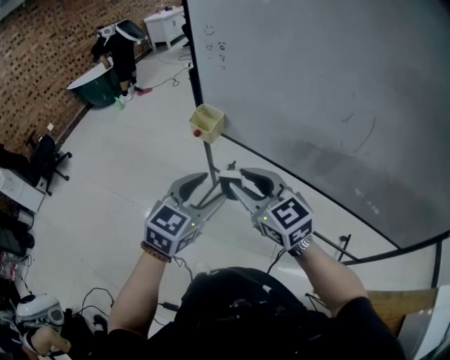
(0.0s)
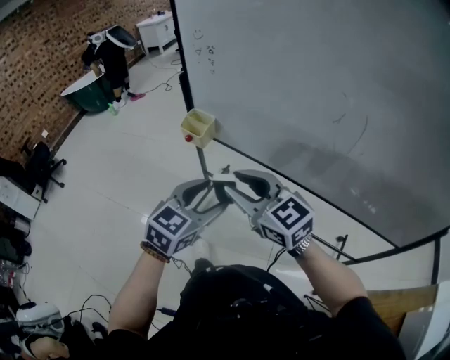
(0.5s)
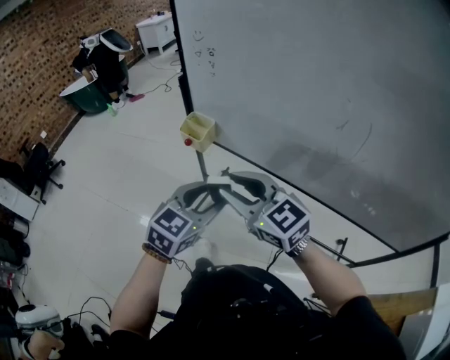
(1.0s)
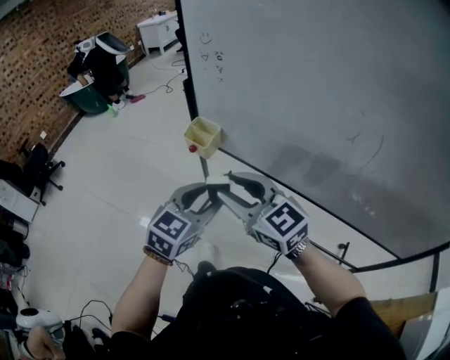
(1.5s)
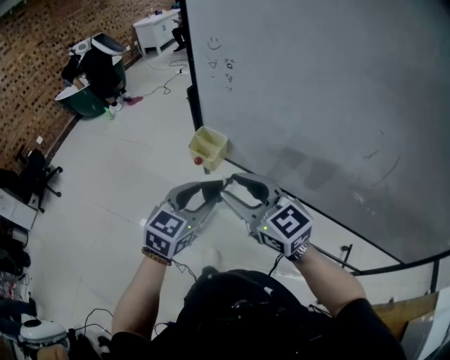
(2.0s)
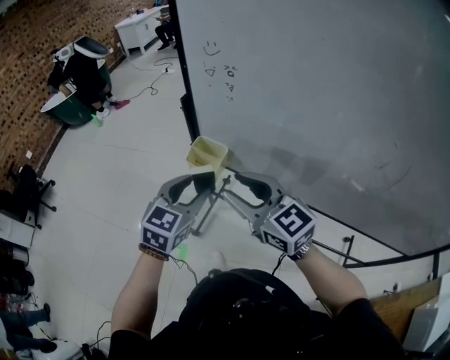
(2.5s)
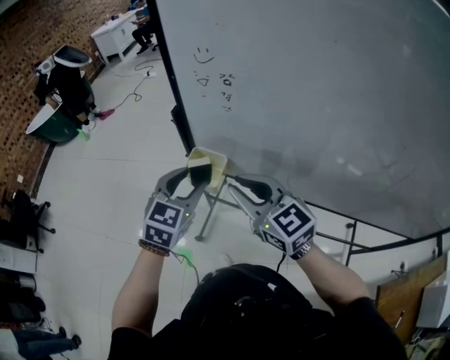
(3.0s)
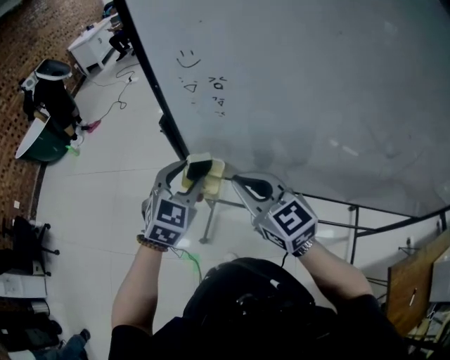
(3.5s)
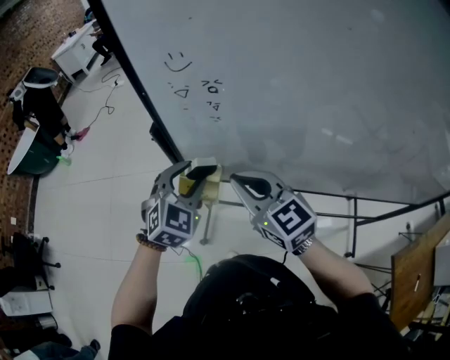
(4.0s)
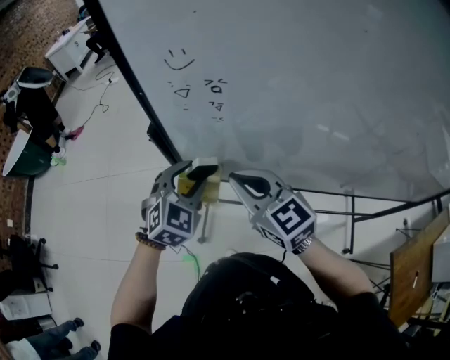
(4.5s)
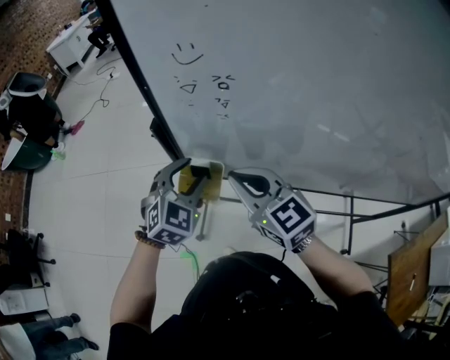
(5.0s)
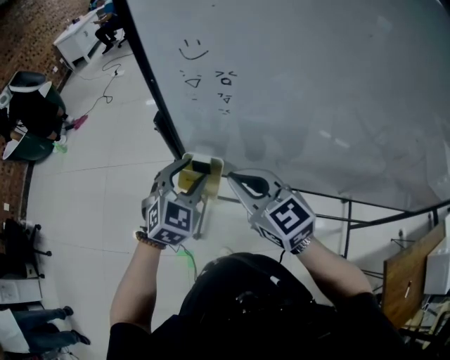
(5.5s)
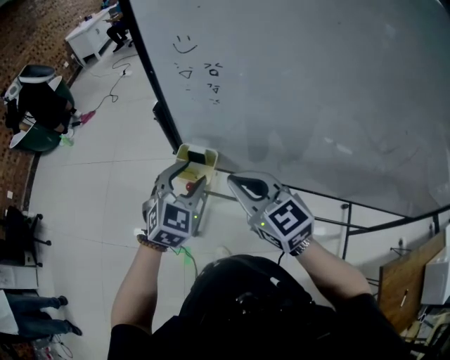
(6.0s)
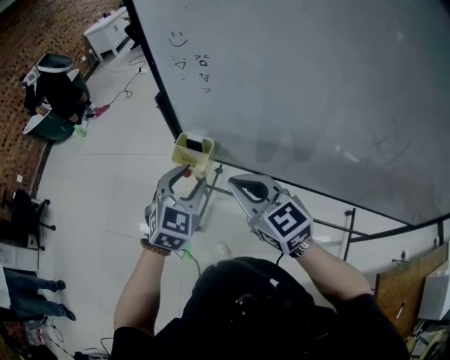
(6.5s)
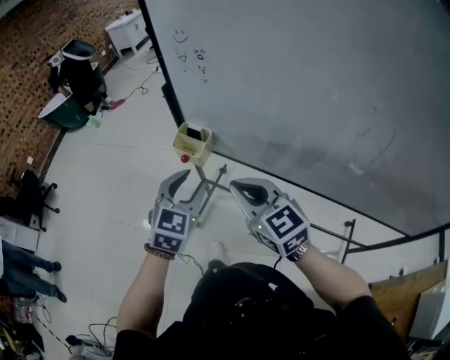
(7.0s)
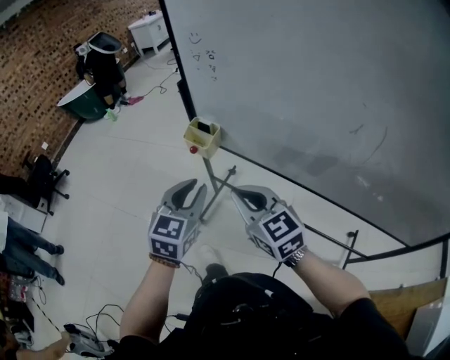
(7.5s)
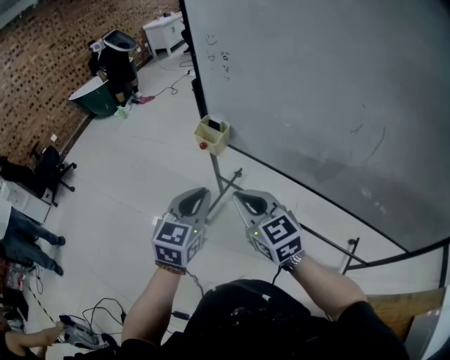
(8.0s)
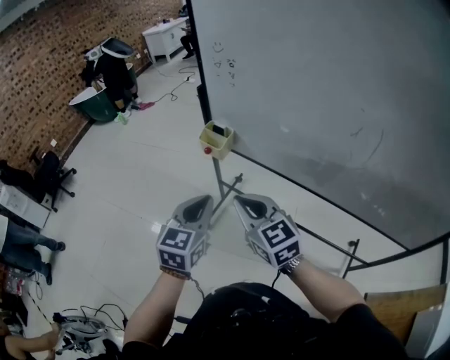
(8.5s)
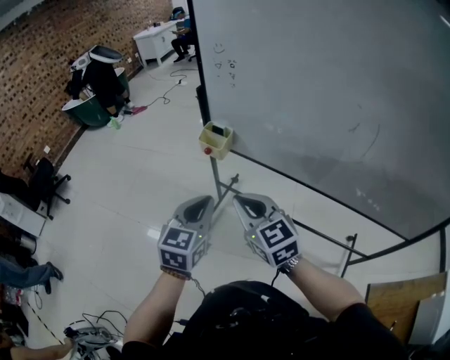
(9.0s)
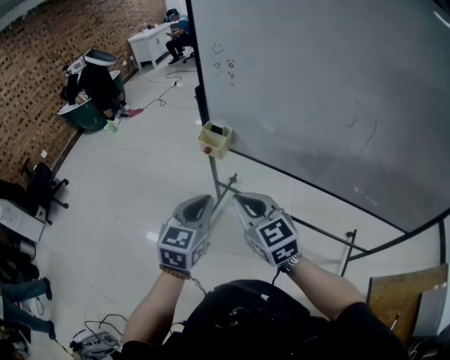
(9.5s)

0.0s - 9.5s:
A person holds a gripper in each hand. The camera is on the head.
0.0s - 2.0s: Both grippers move forward, roughly 10 cm.
2.0s - 4.0s: Both grippers move forward, some 20 cm. The right gripper rotates some 30 degrees, and closes its fingers; the left gripper changes its angle by some 40 degrees.
4.0s - 5.5s: The grippers move only a little.
5.5s - 7.5s: Both grippers move backward, some 25 cm. The left gripper changes its angle by some 40 degrees, and closes up.
7.5s - 9.5s: The left gripper moves backward and to the left, some 10 cm; the right gripper heads to the left and backward, covering roughly 10 cm.

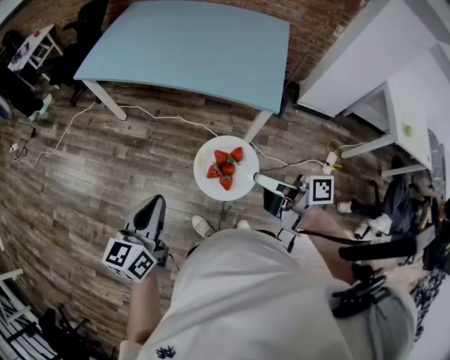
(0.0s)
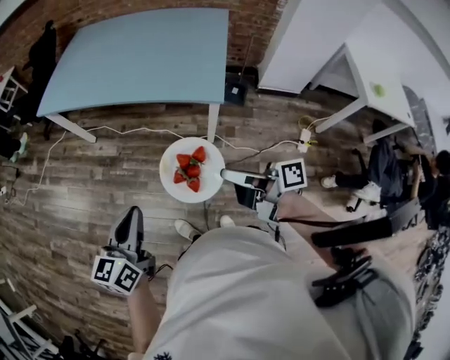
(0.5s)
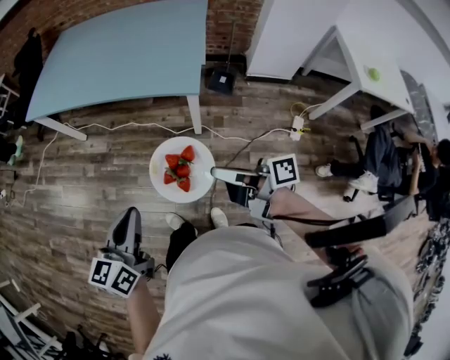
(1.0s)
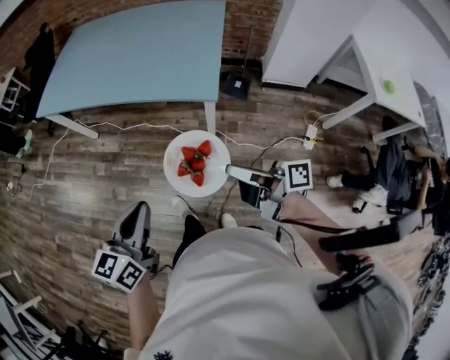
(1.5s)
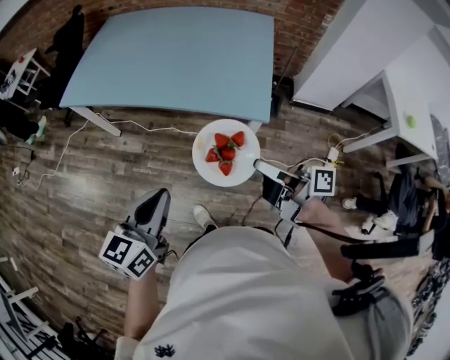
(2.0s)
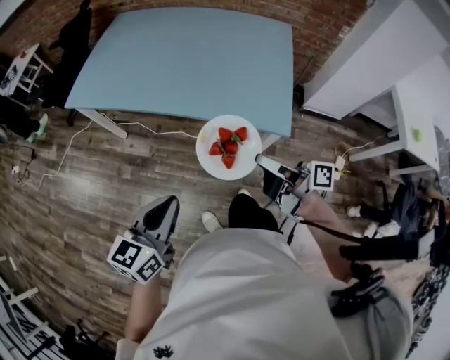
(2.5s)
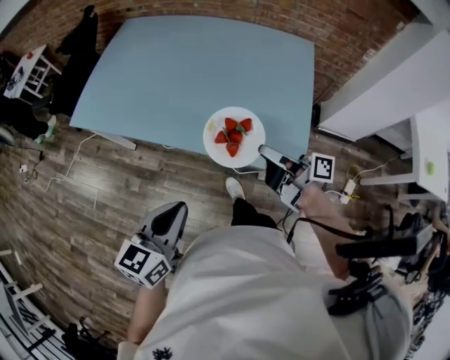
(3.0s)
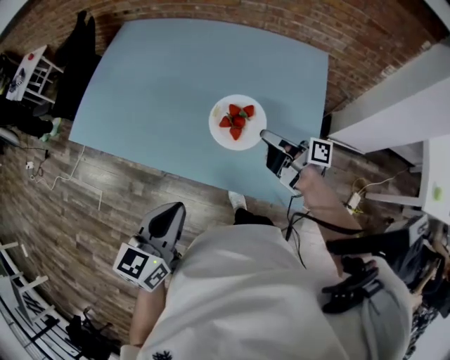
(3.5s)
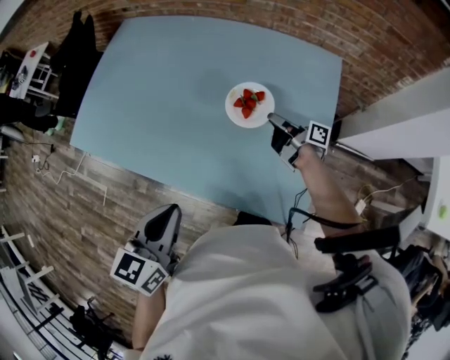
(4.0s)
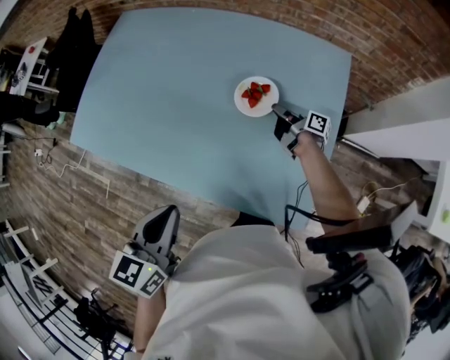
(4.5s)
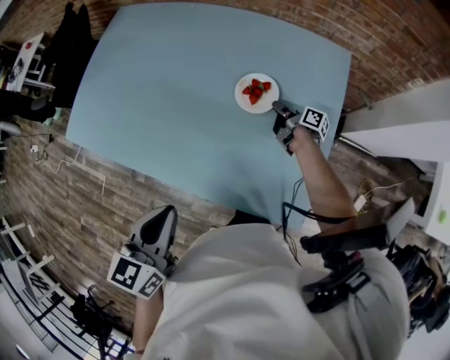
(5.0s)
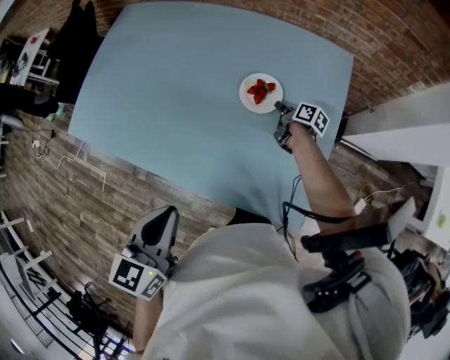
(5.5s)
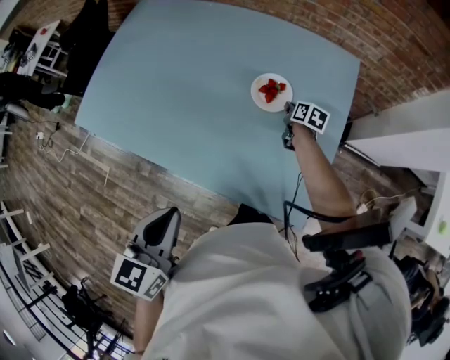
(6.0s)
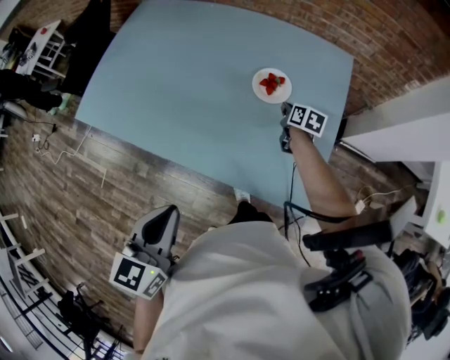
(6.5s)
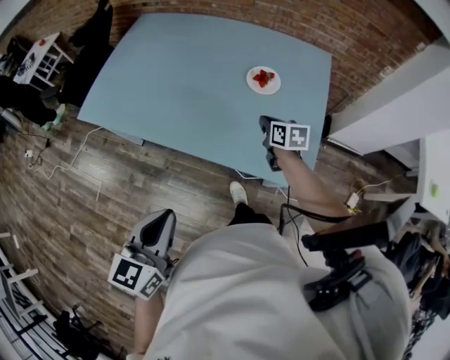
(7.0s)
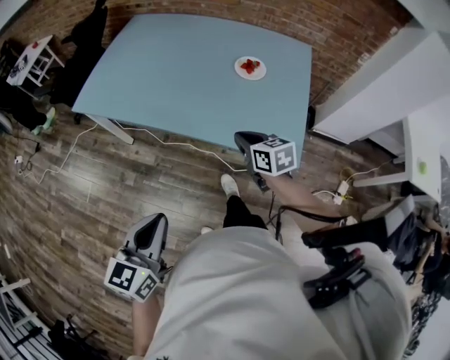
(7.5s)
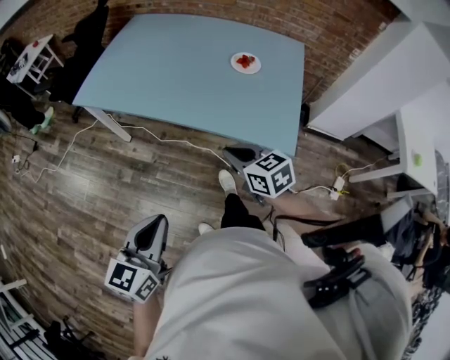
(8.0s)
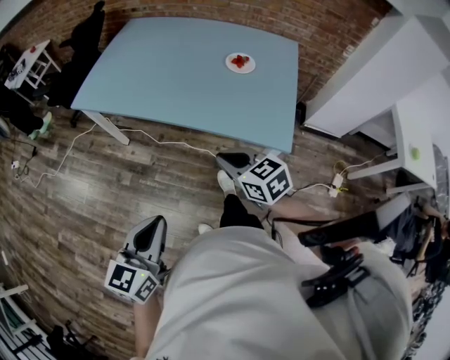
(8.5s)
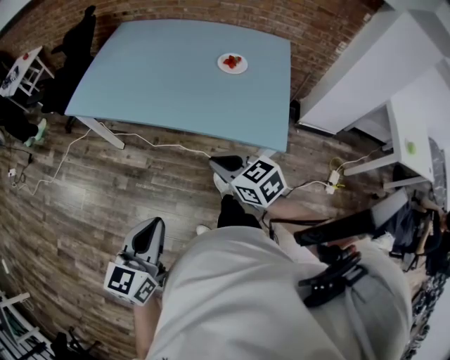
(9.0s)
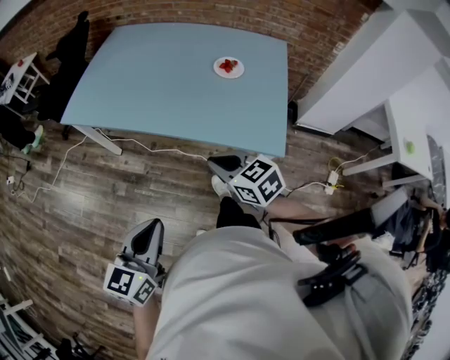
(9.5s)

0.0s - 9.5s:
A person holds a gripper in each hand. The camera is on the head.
0.0s - 2.0s: The left gripper shifts approximately 15 cm to the right and forward, while the right gripper heads forward and to the right, covering roughly 15 cm.
2.0s - 4.0s: The left gripper is displaced forward by some 40 cm. The right gripper shifts some 60 cm forward.
4.0s - 5.5s: The right gripper heads downward and forward, covering approximately 10 cm, and turns by some 30 degrees.
5.5s - 7.5s: The left gripper shifts about 30 cm backward and to the left. Meanwhile the right gripper shifts roughly 50 cm backward, to the left and upward, and twists roughly 50 degrees counterclockwise, seen from behind.
7.5s - 9.5s: The right gripper shifts approximately 15 cm backward, to the left and upward.

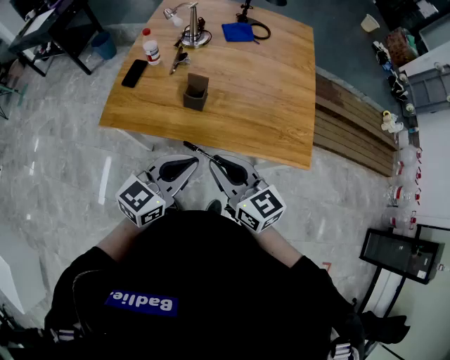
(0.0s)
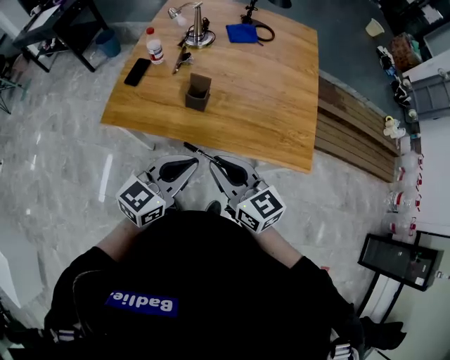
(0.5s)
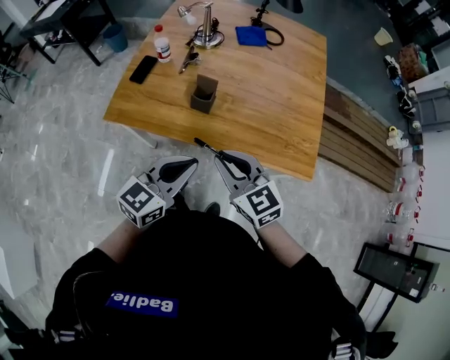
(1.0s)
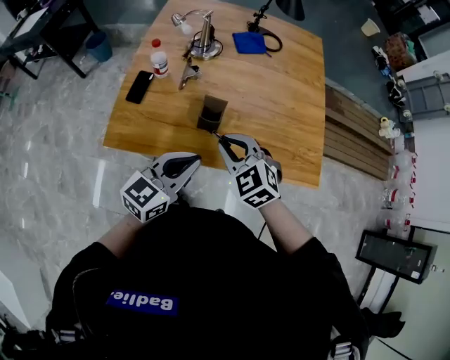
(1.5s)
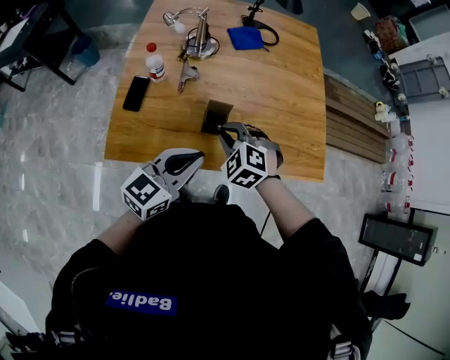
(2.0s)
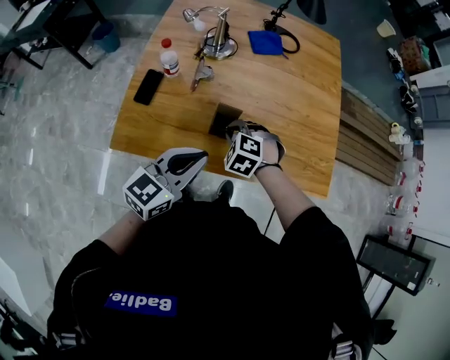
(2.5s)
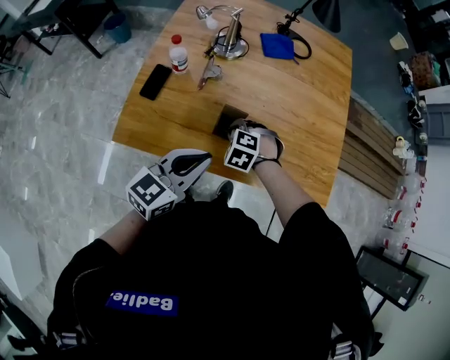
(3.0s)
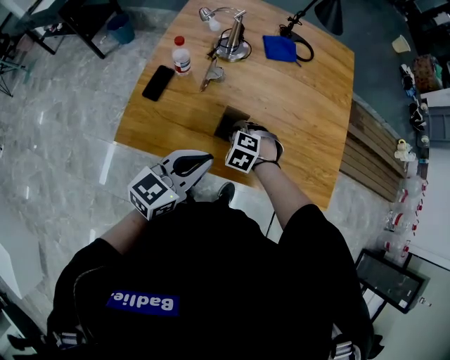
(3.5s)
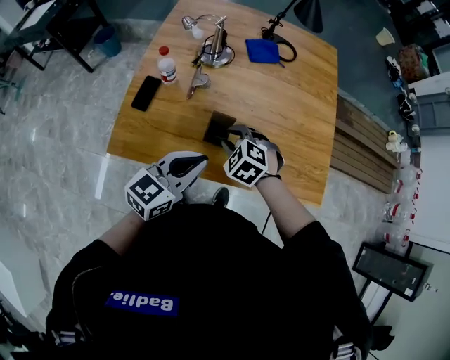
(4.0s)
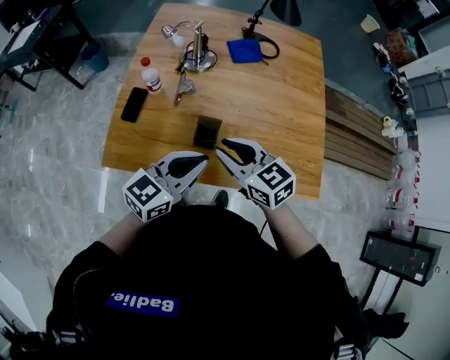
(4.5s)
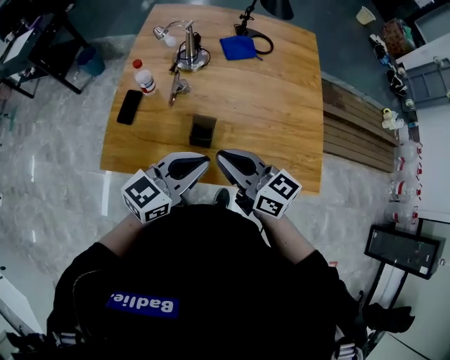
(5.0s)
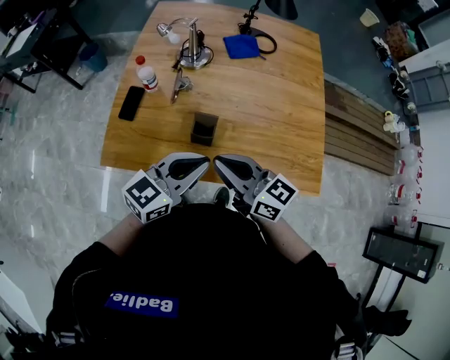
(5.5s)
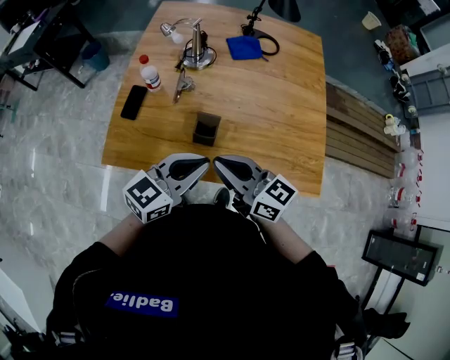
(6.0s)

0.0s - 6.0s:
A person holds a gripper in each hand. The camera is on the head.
0.0s - 2.0s: The left gripper shifts approximately 20 cm forward and to the left. Meanwhile the right gripper travels forward, to the left and downward by about 25 cm, and points its fingers roughly 40 degrees further downward.
2.0s - 4.0s: The right gripper reaches some 10 cm downward, then returns.
4.0s - 6.0s: The right gripper moves upward and backward, roughly 15 cm, angles its fingers upward, by roughly 60 degrees, and closes its fingers.

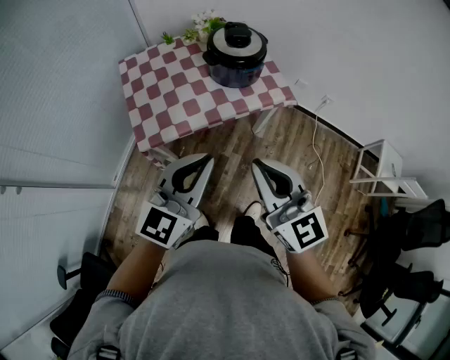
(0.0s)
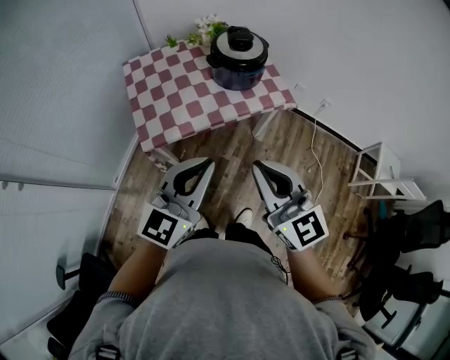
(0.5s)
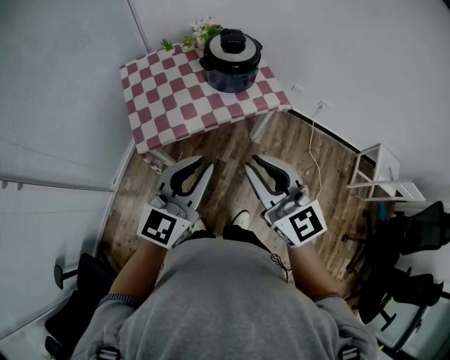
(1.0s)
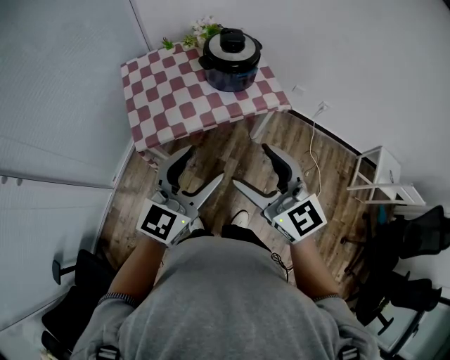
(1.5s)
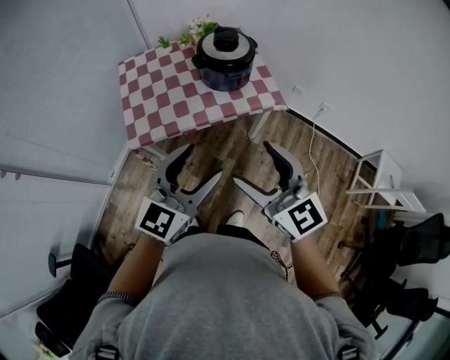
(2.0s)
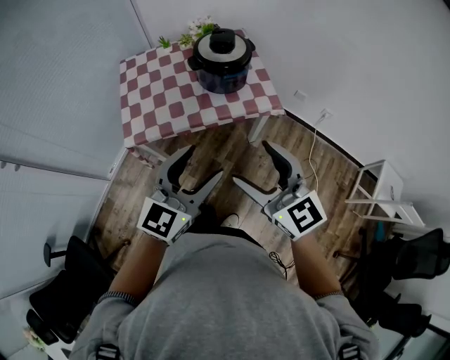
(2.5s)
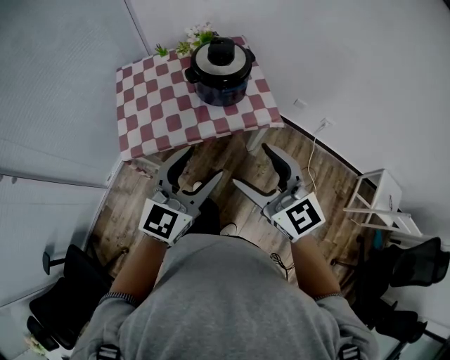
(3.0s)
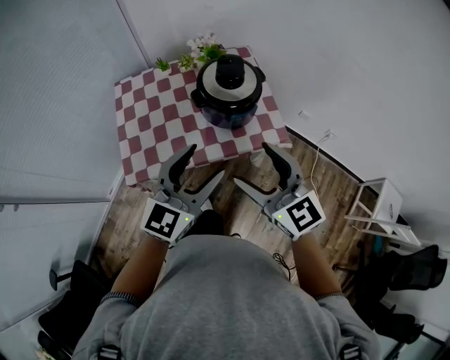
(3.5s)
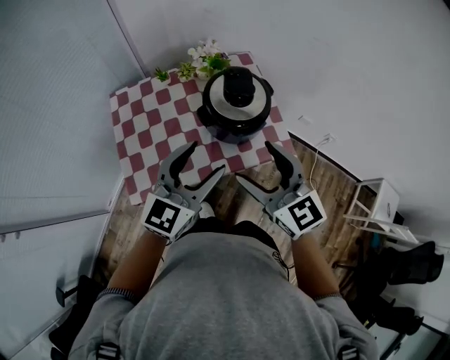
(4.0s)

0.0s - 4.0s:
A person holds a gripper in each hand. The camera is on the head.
0.0s - 2.0s: The two grippers go some 5 cm to the right. The right gripper opens its fingers. Meanwhile the left gripper opens up.
2.0s - 4.0s: The grippers both shift forward by approximately 30 cm.
